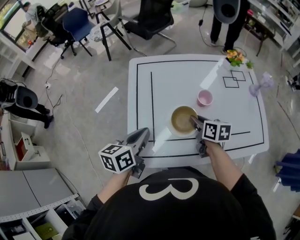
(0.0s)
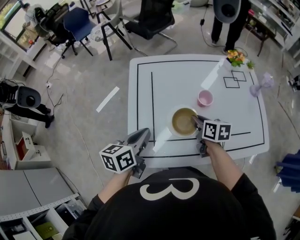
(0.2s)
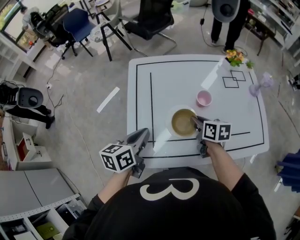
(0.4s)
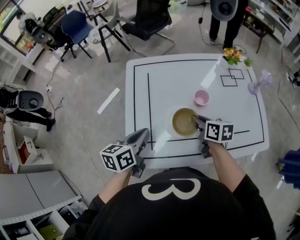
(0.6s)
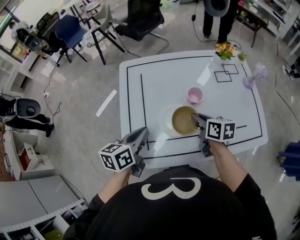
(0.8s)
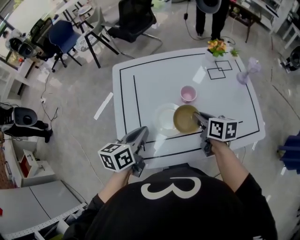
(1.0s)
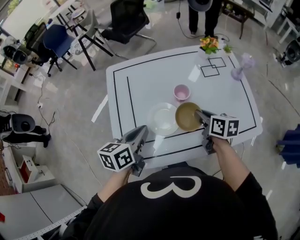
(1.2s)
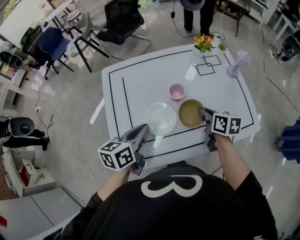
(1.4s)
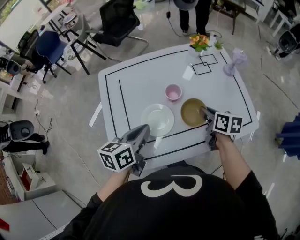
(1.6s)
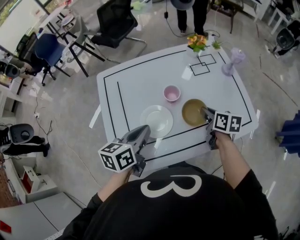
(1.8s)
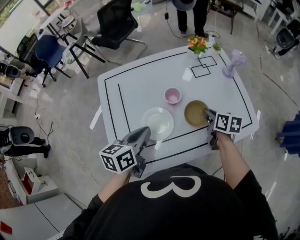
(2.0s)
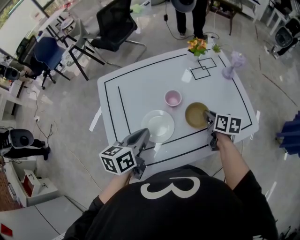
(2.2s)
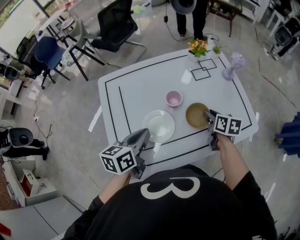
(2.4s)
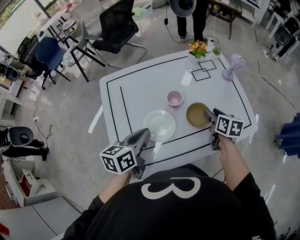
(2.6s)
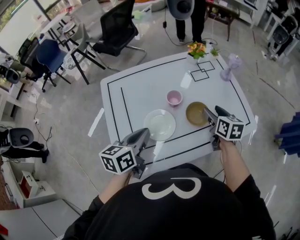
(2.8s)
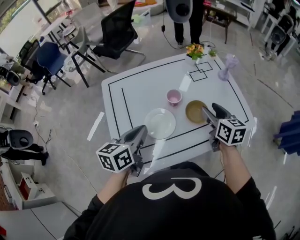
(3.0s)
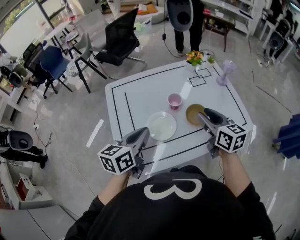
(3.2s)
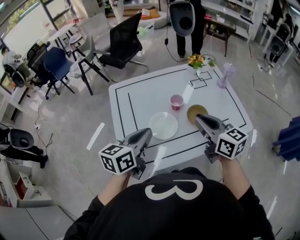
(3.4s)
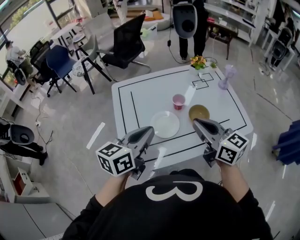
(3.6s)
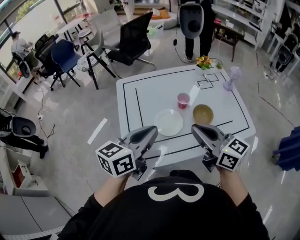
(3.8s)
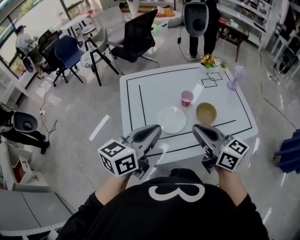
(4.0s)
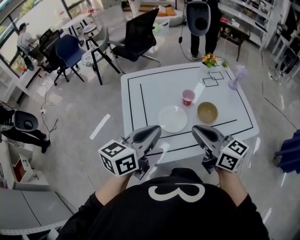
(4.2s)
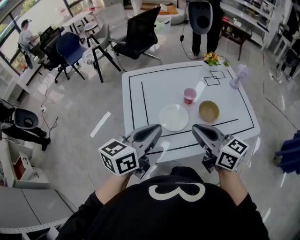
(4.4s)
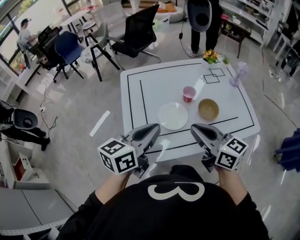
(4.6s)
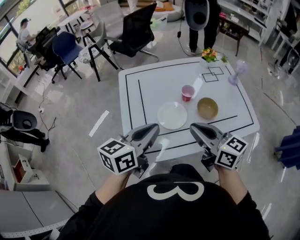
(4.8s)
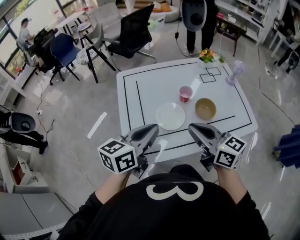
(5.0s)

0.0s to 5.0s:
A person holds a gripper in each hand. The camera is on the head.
0.0s to 1.6s: The two grippers go about 15 cm to the right.
1.6s to 3.4s: The right gripper shifts roughly 20 cm upward, backward and to the left, changes its angle by about 30 degrees, and opens and closes again, while the left gripper heads upward, covering about 5 cm.
3.4s to 5.0s: The right gripper goes about 10 cm to the left and backward.

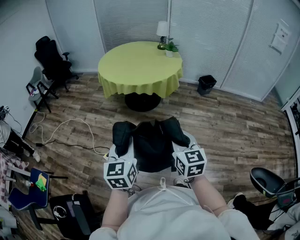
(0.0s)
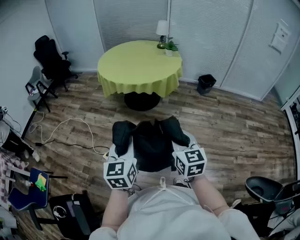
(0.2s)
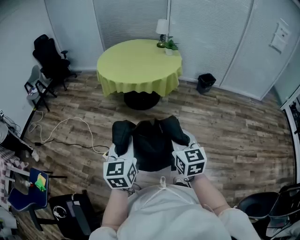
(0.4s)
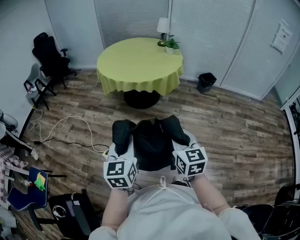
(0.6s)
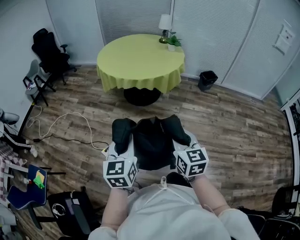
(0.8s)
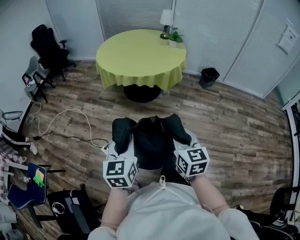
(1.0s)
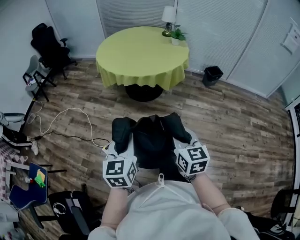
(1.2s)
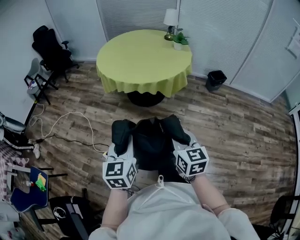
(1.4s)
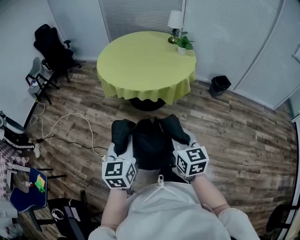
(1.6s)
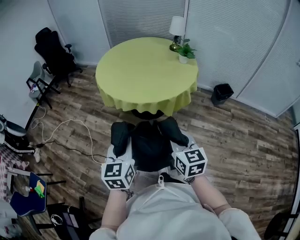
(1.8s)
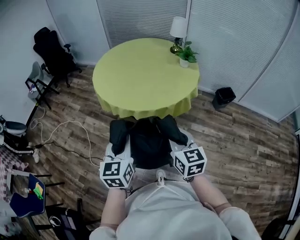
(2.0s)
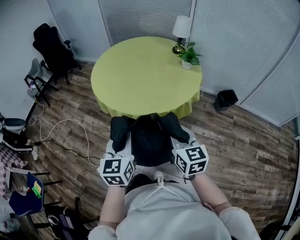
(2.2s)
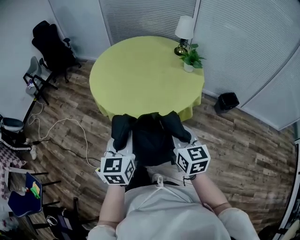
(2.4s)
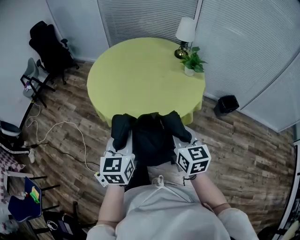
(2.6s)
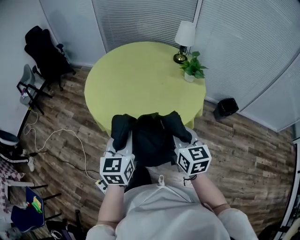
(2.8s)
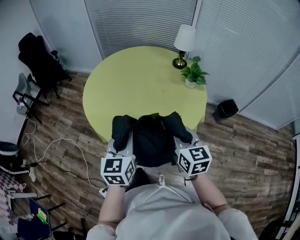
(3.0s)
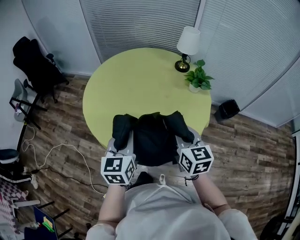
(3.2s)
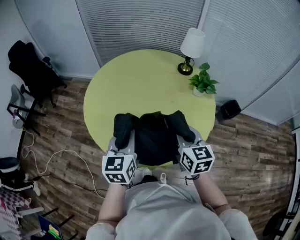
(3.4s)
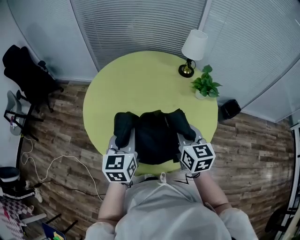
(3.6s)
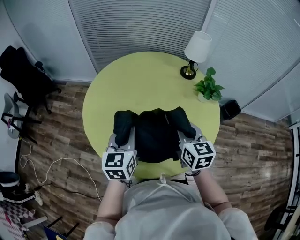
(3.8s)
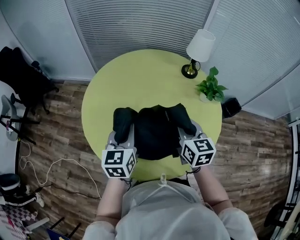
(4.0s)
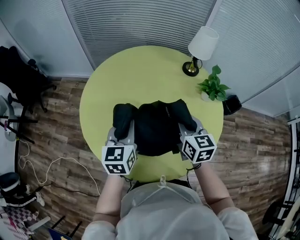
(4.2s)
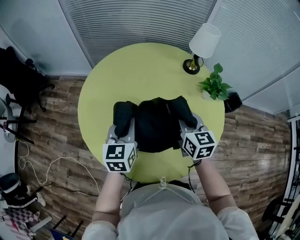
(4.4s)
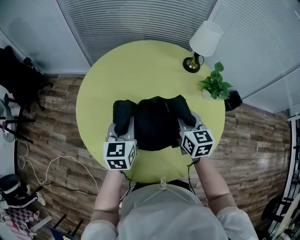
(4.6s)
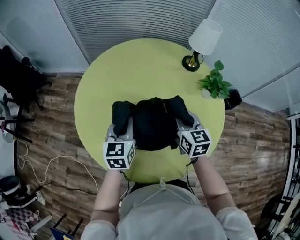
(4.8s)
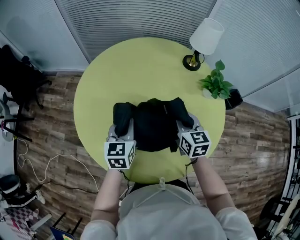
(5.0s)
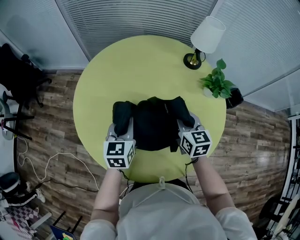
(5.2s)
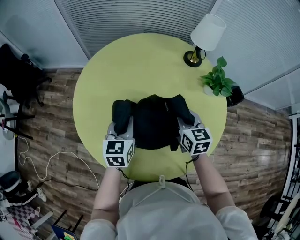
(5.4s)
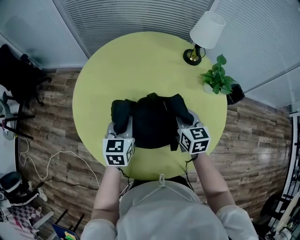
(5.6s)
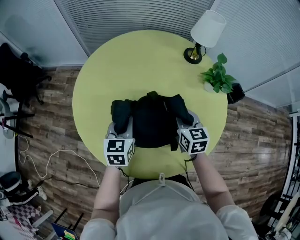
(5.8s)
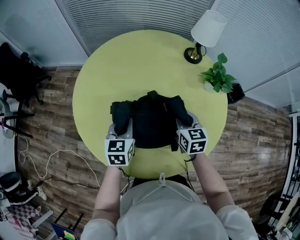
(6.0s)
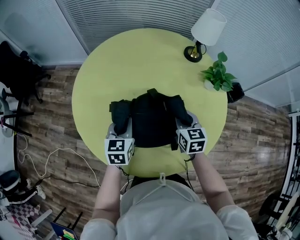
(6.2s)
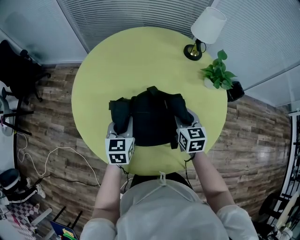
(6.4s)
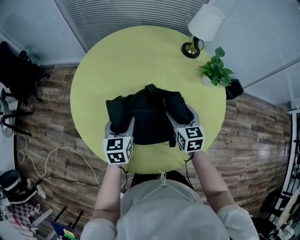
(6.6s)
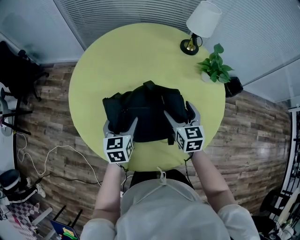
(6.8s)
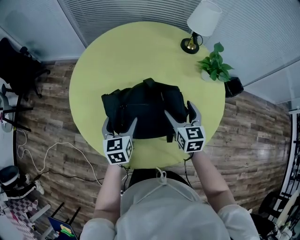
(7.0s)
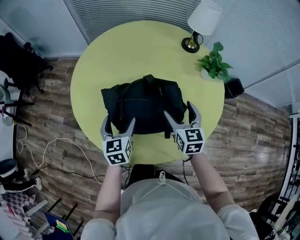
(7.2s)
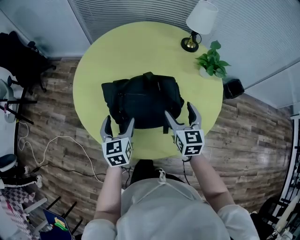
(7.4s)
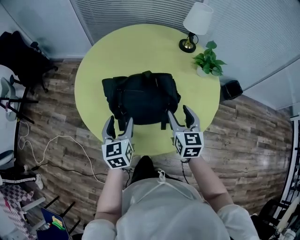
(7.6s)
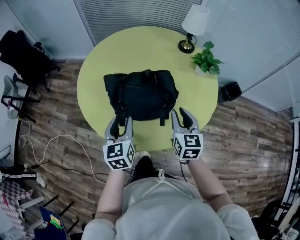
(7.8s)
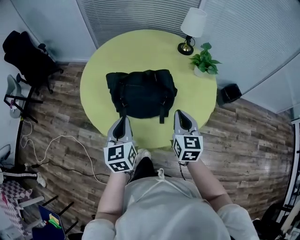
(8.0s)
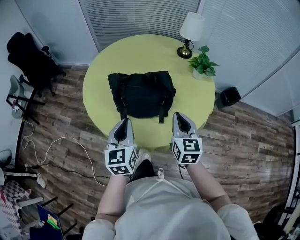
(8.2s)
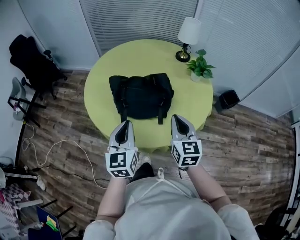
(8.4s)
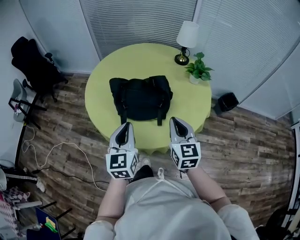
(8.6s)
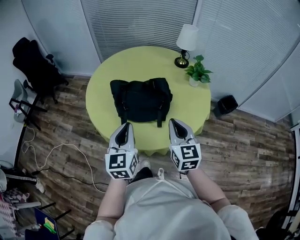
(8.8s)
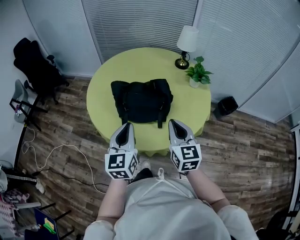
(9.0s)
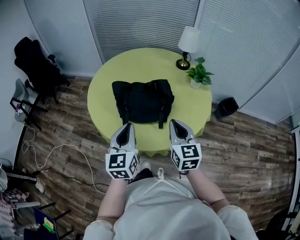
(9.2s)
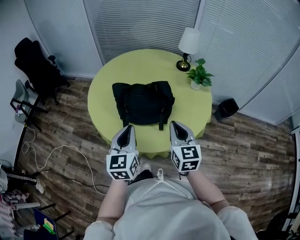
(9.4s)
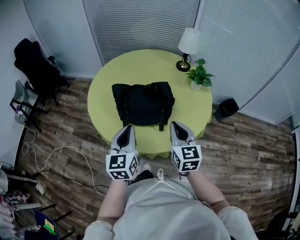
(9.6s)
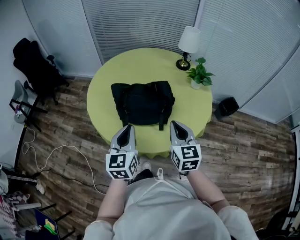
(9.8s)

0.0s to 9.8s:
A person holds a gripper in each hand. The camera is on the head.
0.0s to 1.4s: Both grippers travel together forward, approximately 15 cm.
1.4s to 2.8s: Both grippers are carried forward, approximately 50 cm.
2.8s to 4.2s: The grippers both shift forward by about 40 cm.
4.2s to 5.6s: Both grippers move downward, some 10 cm.
5.6s to 7.0s: The grippers both shift backward by some 5 cm. The left gripper opens its fingers; the right gripper opens up.
7.0s to 8.4s: Both grippers move backward and upward, roughly 30 cm. The left gripper closes its fingers. Meanwhile the right gripper closes.
8.4s to 9.8s: The grippers move only a little.

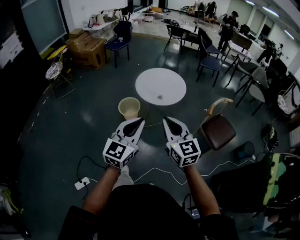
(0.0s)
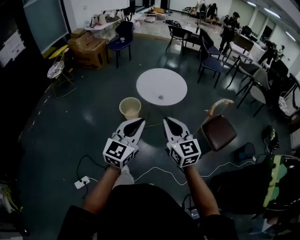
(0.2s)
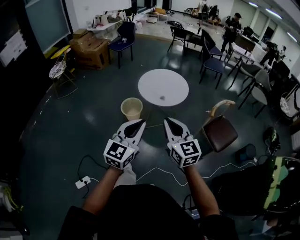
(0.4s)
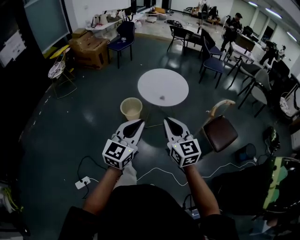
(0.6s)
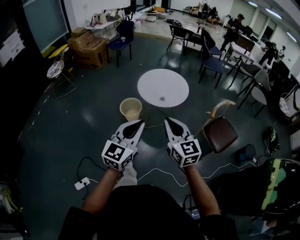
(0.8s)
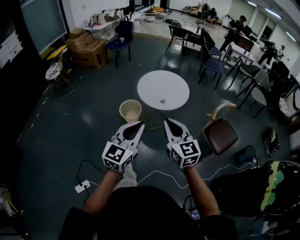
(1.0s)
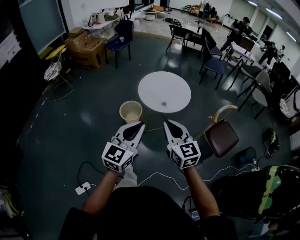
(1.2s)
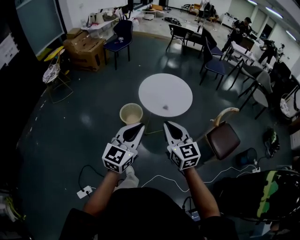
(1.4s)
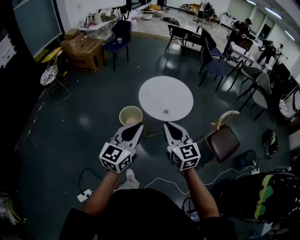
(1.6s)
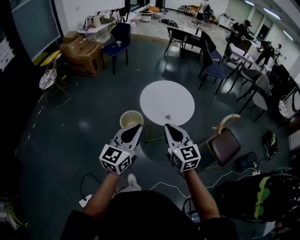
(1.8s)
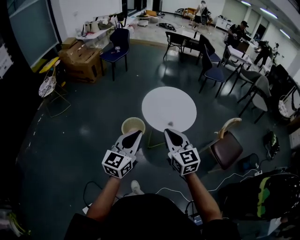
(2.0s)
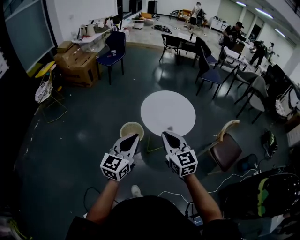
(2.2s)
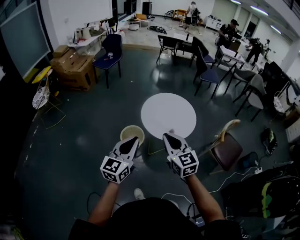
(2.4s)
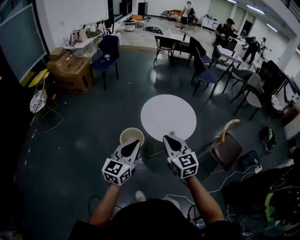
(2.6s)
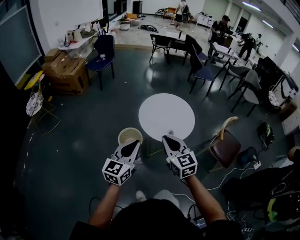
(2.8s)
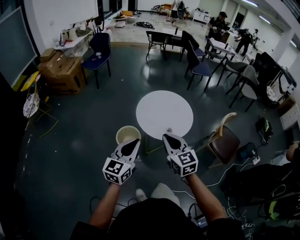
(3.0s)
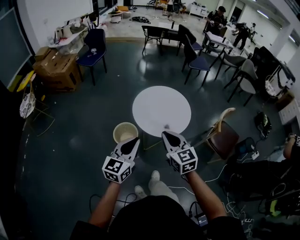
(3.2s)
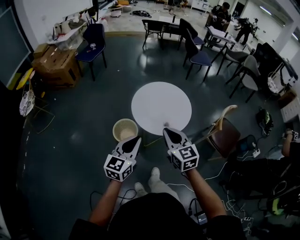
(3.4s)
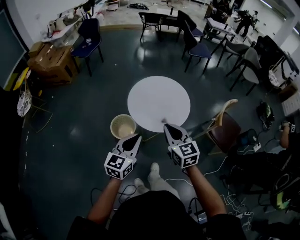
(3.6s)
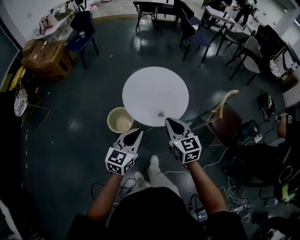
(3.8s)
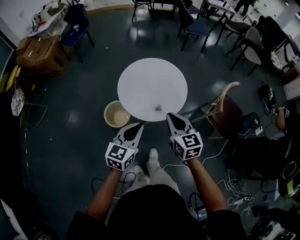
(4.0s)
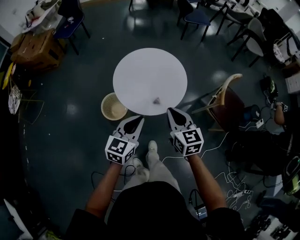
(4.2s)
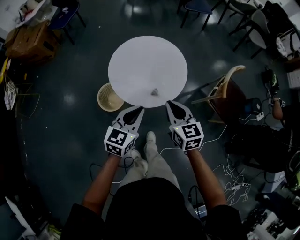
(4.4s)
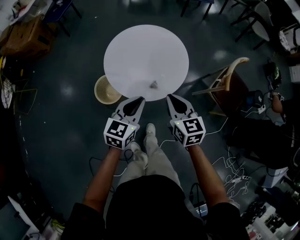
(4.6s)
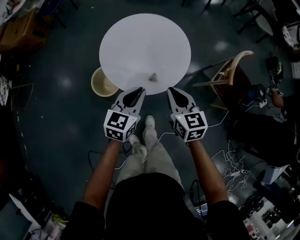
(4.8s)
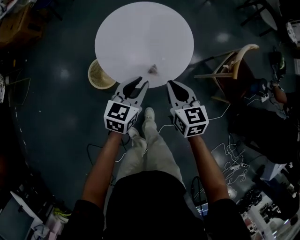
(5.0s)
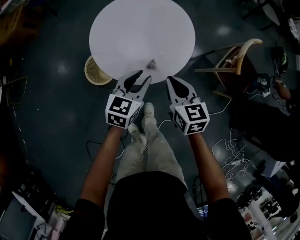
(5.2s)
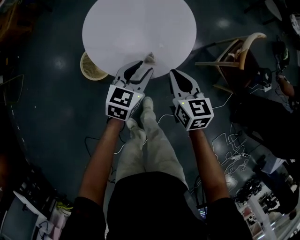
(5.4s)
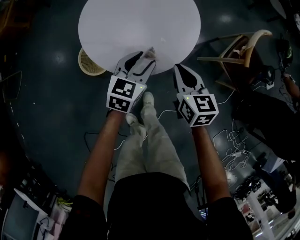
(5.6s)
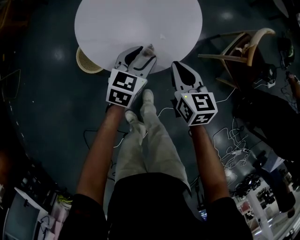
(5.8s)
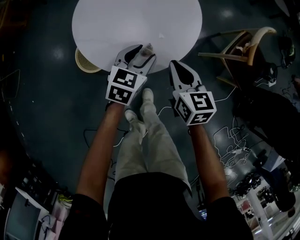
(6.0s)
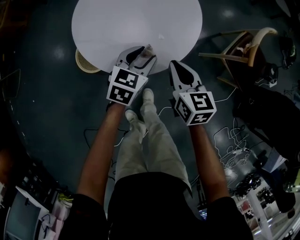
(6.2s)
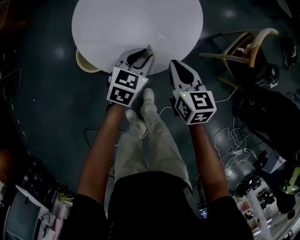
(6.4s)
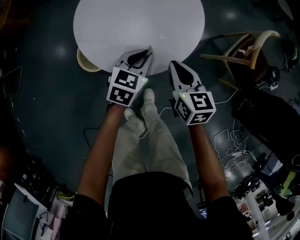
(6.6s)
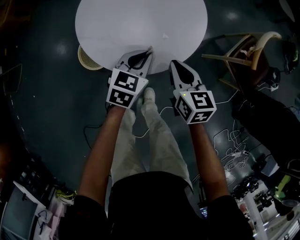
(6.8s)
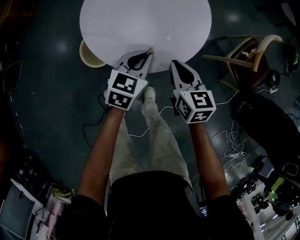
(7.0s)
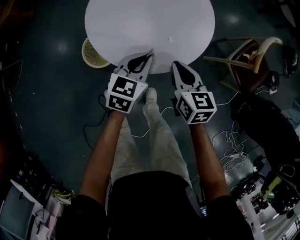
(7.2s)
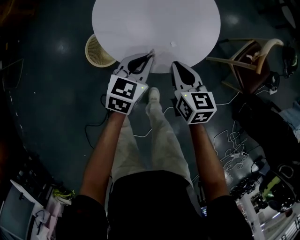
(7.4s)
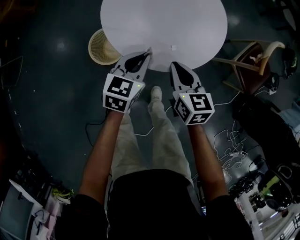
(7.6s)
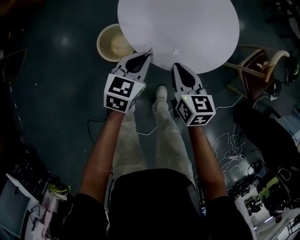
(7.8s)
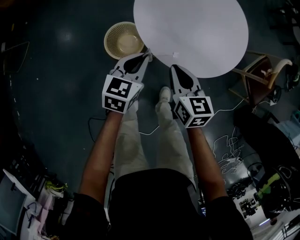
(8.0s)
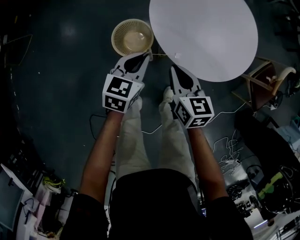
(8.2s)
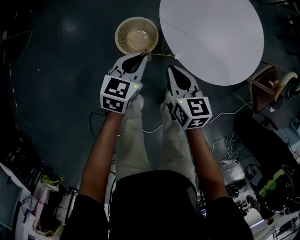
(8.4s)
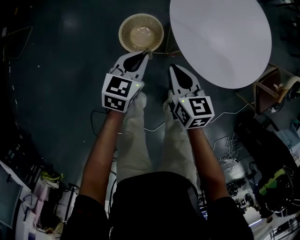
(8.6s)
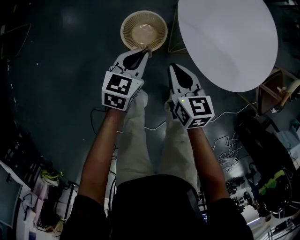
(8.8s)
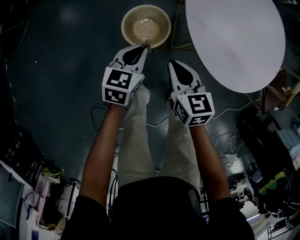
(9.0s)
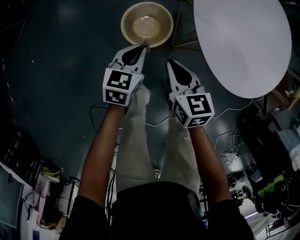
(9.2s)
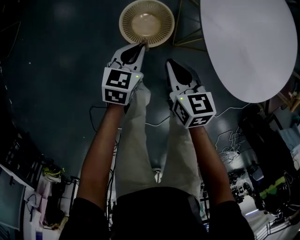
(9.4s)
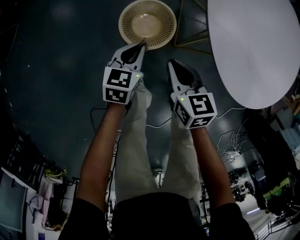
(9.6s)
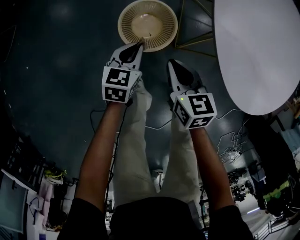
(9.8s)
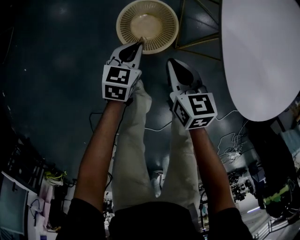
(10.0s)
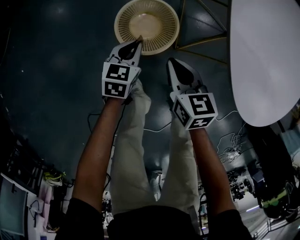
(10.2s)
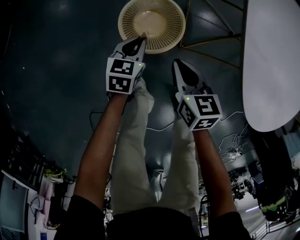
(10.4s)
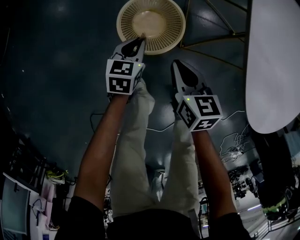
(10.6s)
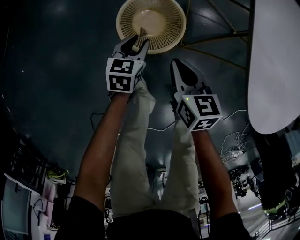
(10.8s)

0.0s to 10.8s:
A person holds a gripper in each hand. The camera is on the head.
0.0s to 1.6s: The two grippers go some 20 cm forward and to the left.
1.6s to 3.0s: The two grippers go about 20 cm forward and to the left.
3.0s to 4.6s: The right gripper travels downward, forward and to the right by roughly 35 cm, and swivels some 20 degrees; the left gripper moves forward, downward and to the right, approximately 40 cm, and rotates some 20 degrees.
4.6s to 6.2s: The right gripper is displaced downward by some 20 cm; the left gripper is displaced downward and forward by roughly 25 cm, and opens its fingers.
6.2s to 7.8s: The grippers both shift to the left by approximately 20 cm. The left gripper closes up.
7.8s to 9.2s: Both grippers travel together to the left and downward, roughly 30 cm.
9.2s to 10.8s: The grippers both shift downward by about 20 cm. The left gripper opens its fingers.
